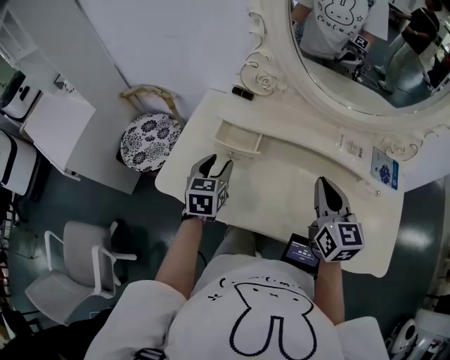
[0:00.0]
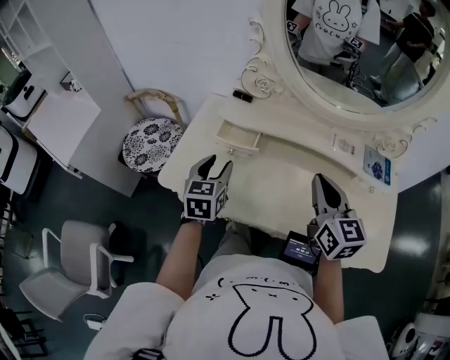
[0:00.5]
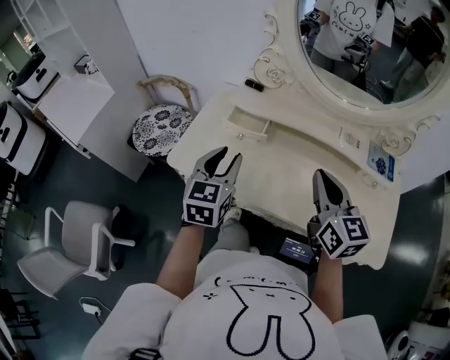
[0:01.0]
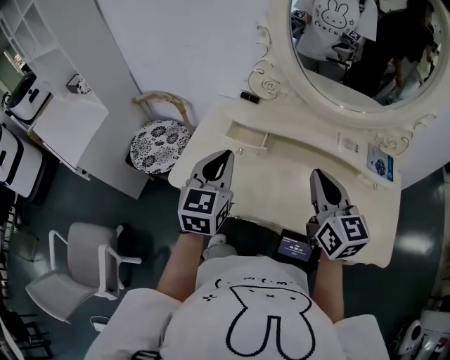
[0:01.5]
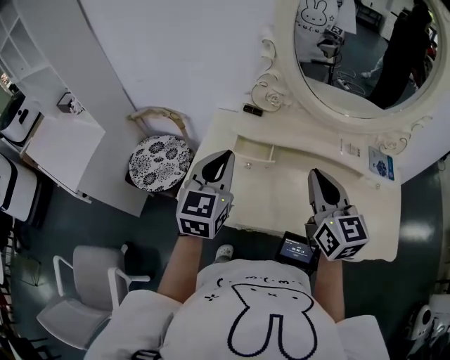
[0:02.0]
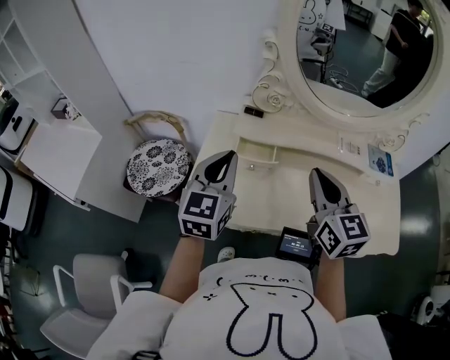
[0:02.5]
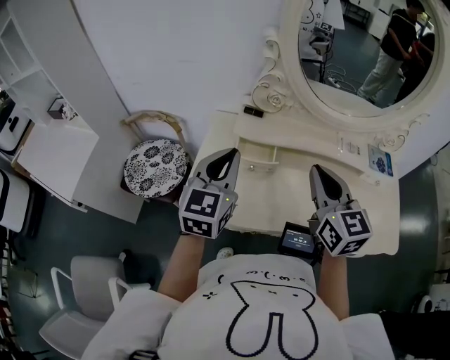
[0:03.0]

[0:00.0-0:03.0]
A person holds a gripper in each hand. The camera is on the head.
0:00.0 to 0:01.5: The right gripper heads upward and to the left, covering roughly 10 cm, while the left gripper moves upward and backward, about 15 cm, turns by some 20 degrees, and closes.
0:01.5 to 0:03.0: The right gripper is displaced to the left by about 5 cm. The left gripper ends up some 5 cm from where it was.

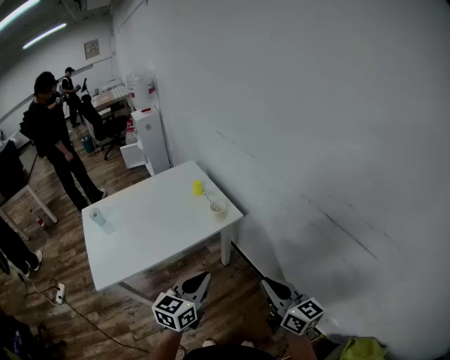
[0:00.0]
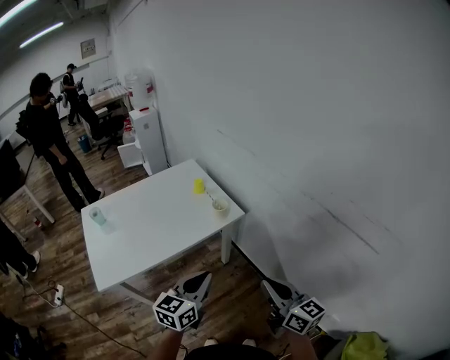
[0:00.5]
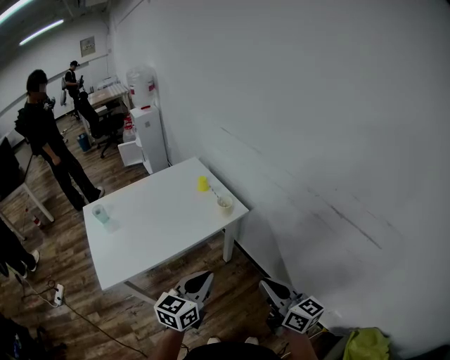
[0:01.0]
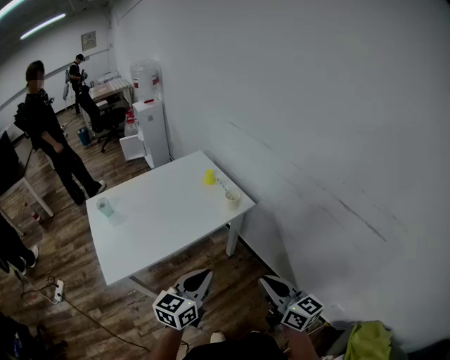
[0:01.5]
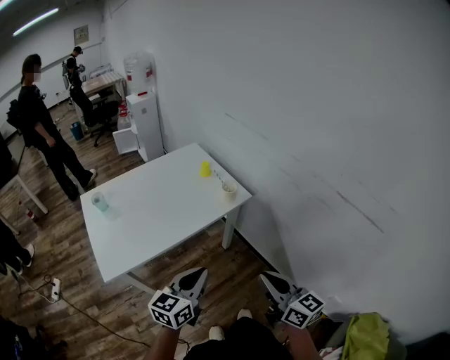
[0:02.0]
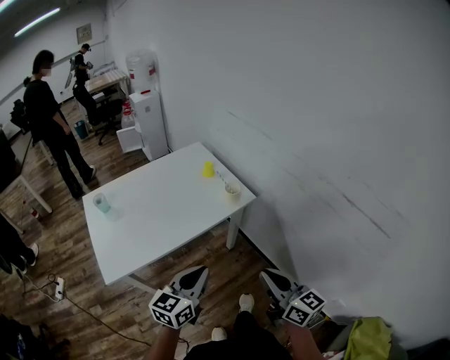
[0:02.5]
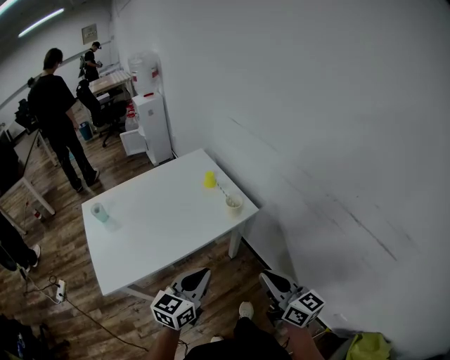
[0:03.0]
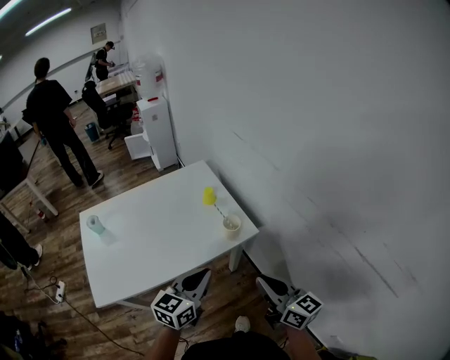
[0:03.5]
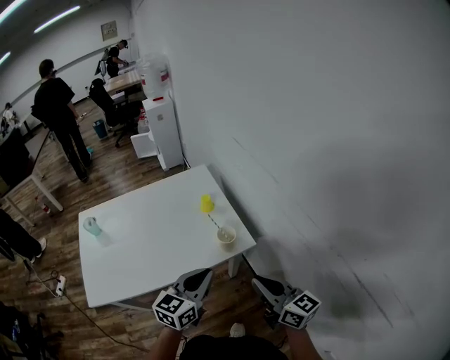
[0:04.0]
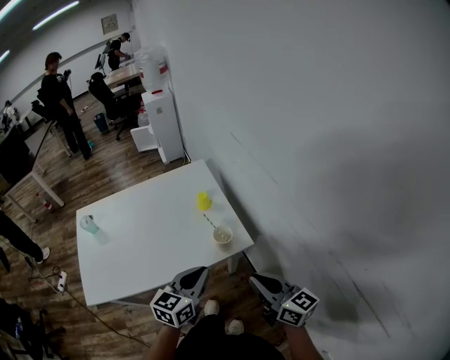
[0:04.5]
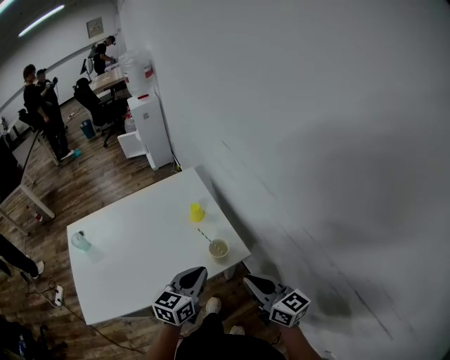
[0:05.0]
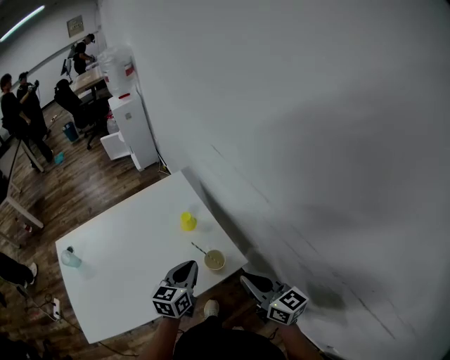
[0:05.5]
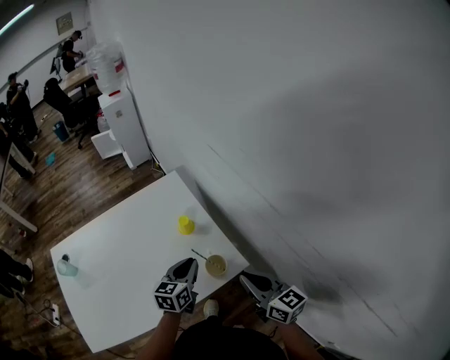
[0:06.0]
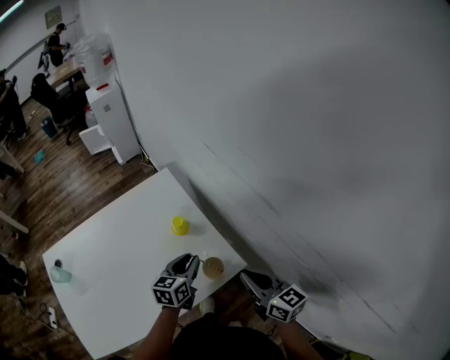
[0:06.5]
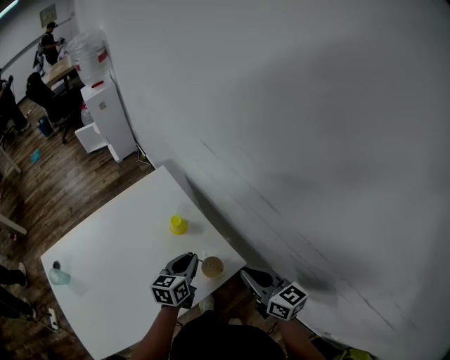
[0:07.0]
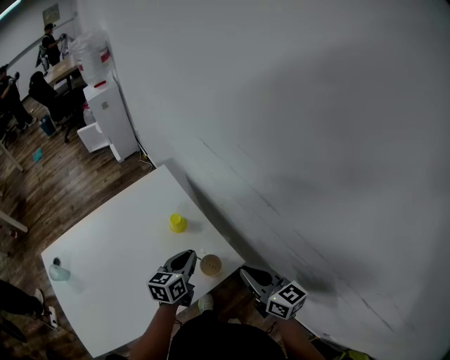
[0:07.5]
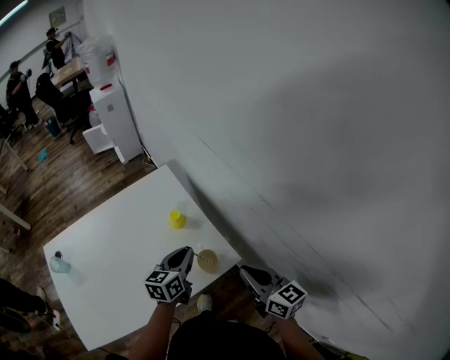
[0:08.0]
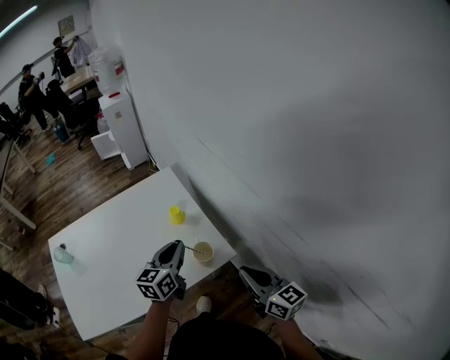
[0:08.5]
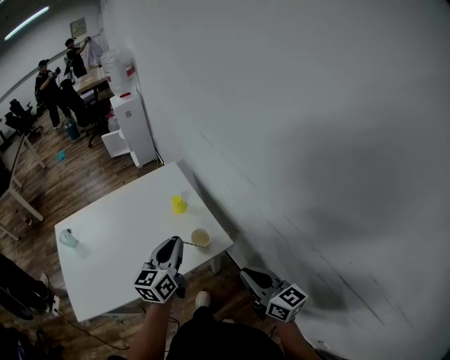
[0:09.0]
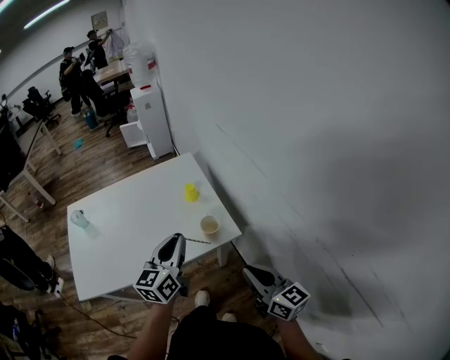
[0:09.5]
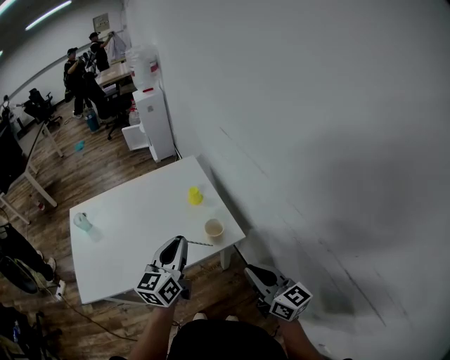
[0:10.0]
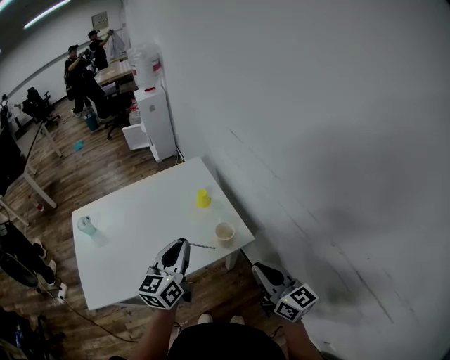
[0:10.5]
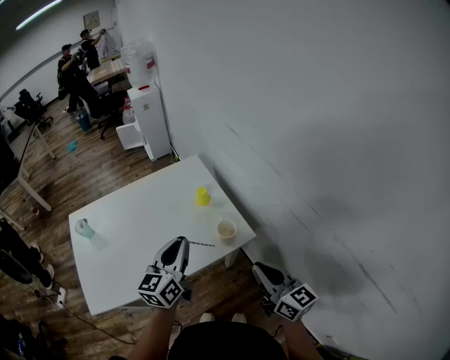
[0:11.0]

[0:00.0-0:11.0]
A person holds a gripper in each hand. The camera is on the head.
0:00.0 to 0:02.0: Both grippers move to the left and backward, some 10 cm.
0:02.0 to 0:03.5: The grippers both shift forward by some 20 cm.
0:03.5 to 0:05.5: Both grippers move forward, roughly 20 cm.
0:05.5 to 0:07.5: The left gripper shifts approximately 5 cm forward; the right gripper ends up some 5 cm from where it was.
0:07.5 to 0:09.0: The left gripper is displaced upward and backward by approximately 20 cm, and swivels approximately 20 degrees, while the right gripper moves backward, some 15 cm.
0:09.0 to 0:11.0: Both grippers move to the left, roughly 5 cm.

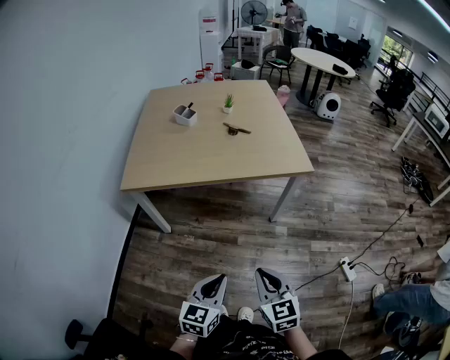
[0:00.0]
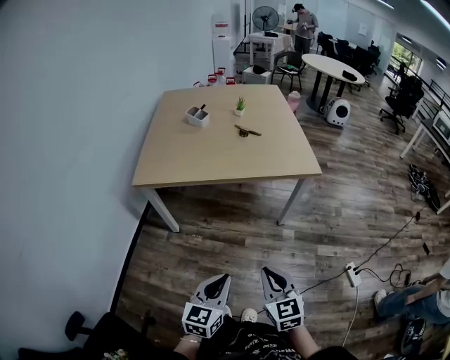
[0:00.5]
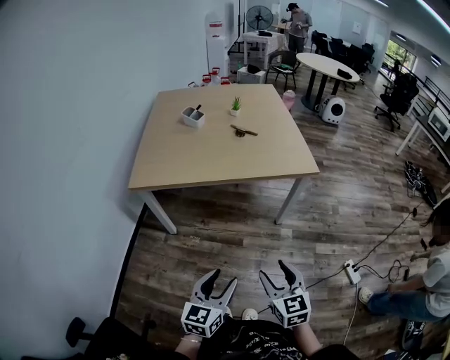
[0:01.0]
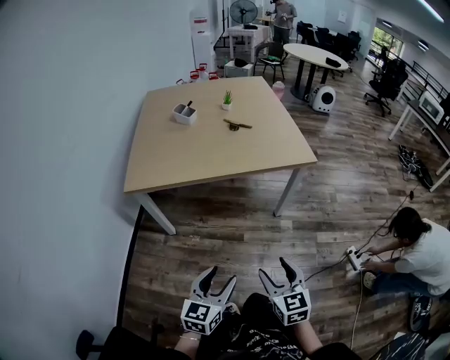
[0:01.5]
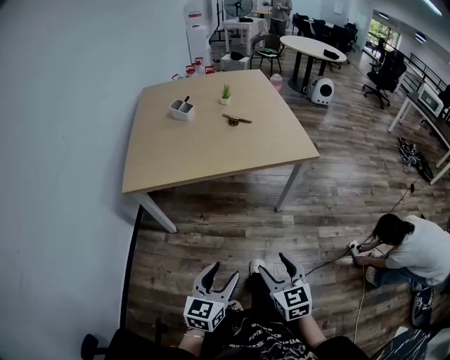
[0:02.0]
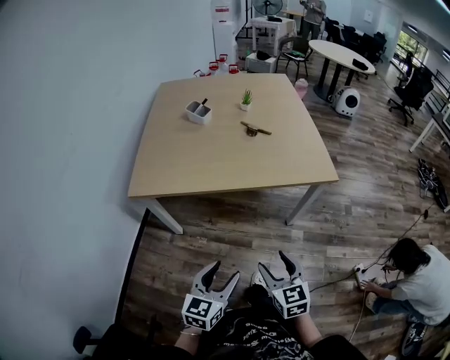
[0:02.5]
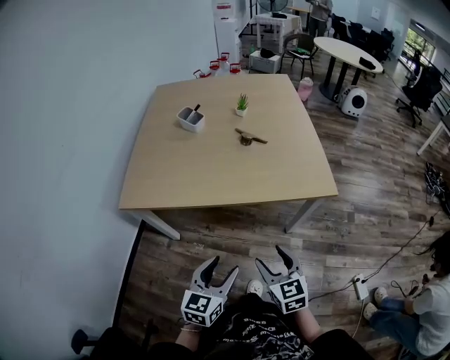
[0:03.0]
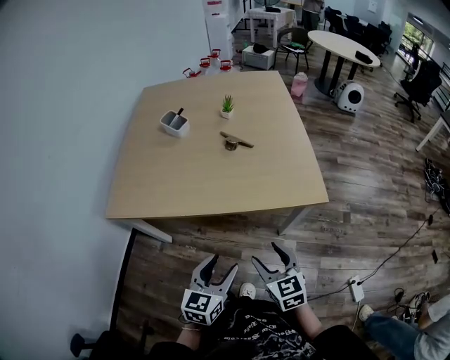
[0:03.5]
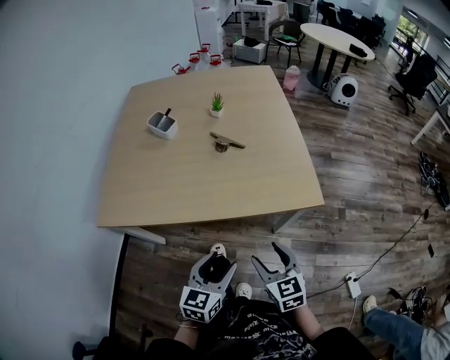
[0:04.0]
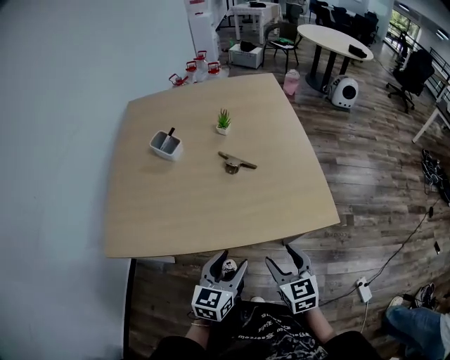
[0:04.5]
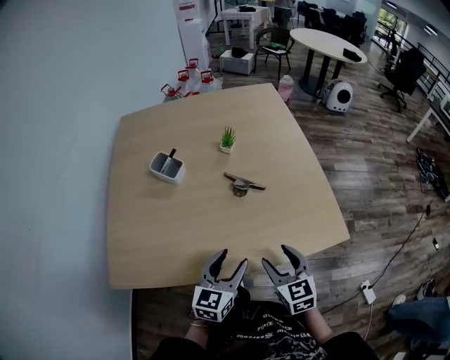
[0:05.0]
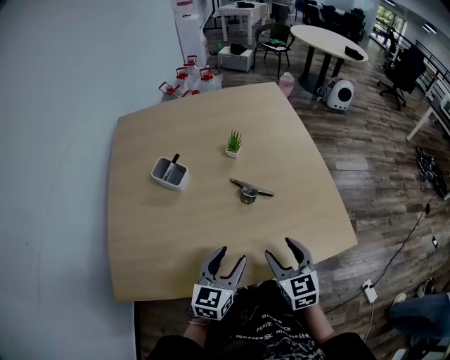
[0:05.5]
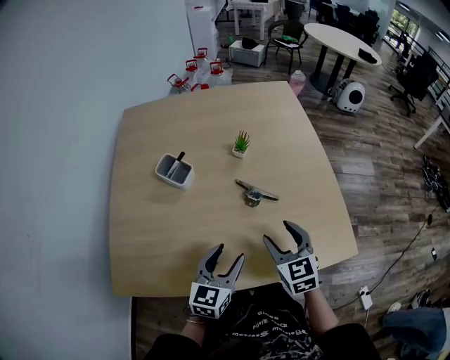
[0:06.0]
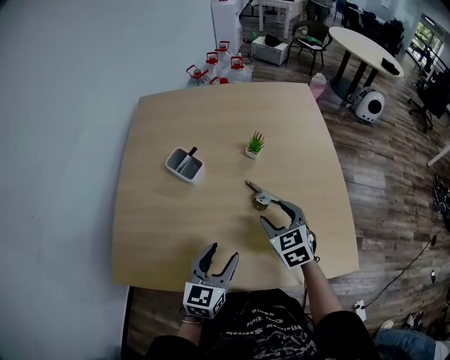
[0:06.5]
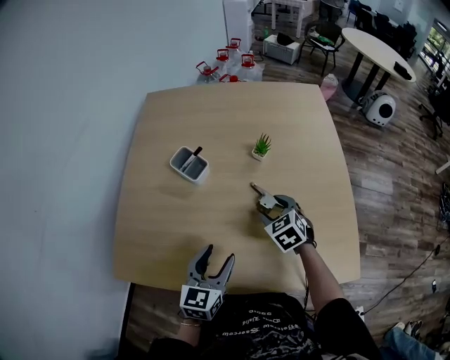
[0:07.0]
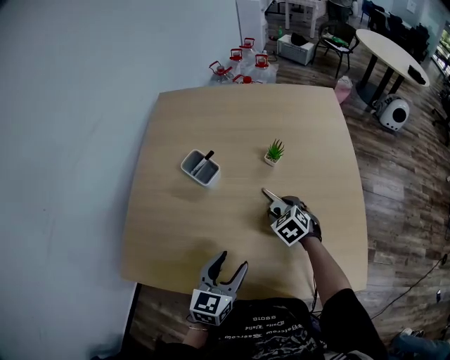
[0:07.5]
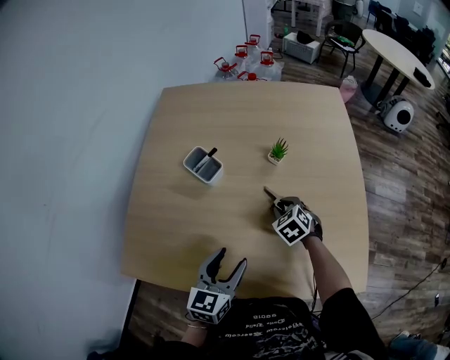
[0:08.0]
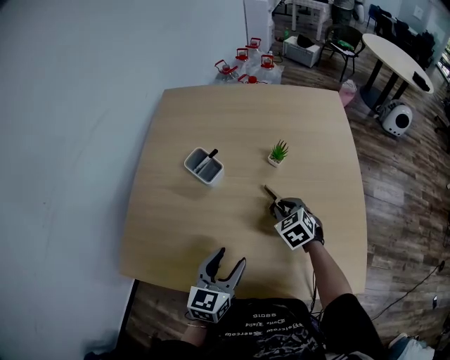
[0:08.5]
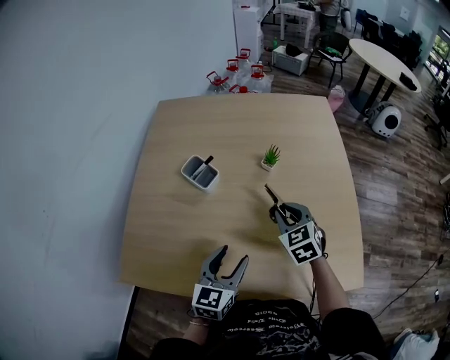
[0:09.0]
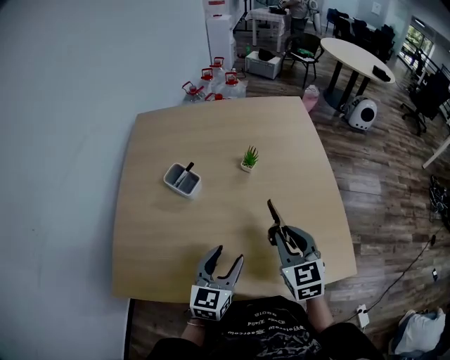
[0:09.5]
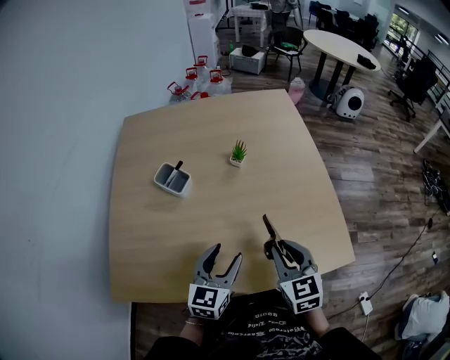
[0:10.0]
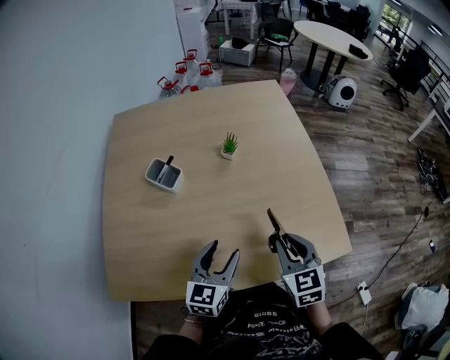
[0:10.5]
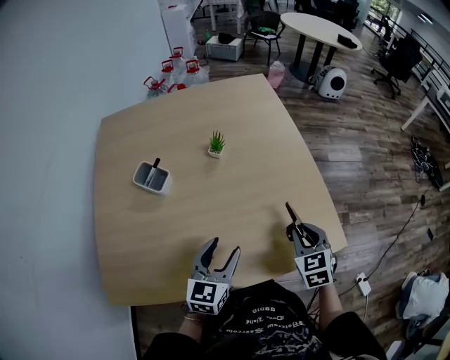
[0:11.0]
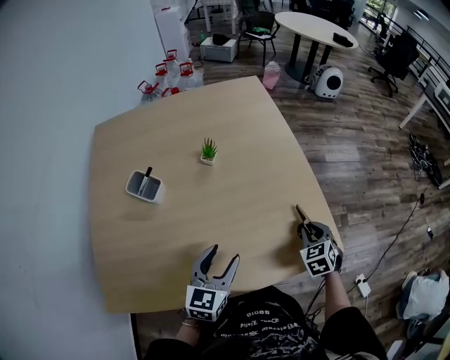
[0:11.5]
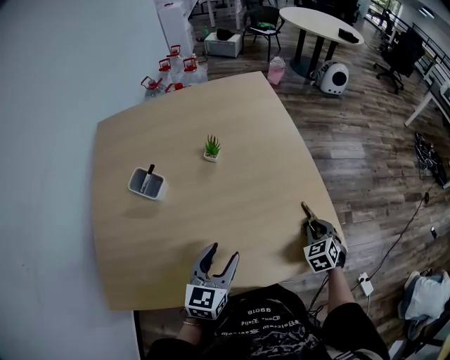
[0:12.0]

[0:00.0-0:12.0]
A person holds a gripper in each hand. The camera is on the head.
0:00.0 to 0:02.0: The right gripper opens, while the left gripper goes approximately 5 cm to the left, and opens.
0:02.0 to 0:04.0: The right gripper moves forward, approximately 30 cm; the left gripper moves forward and to the right, roughly 30 cm.
0:04.0 to 0:06.0: Both grippers travel together forward and to the left, approximately 35 cm.
0:06.0 to 0:08.0: The right gripper shifts approximately 20 cm forward and downward, changes its angle by some 40 degrees, and closes up.
0:08.0 to 0:10.0: The right gripper shifts about 25 cm backward and upward, and turns by some 40 degrees.
0:10.0 to 0:12.0: The left gripper ends up approximately 5 cm from where it was. The right gripper heads to the right, downward and forward, covering roughly 25 cm, and changes its angle by some 40 degrees.

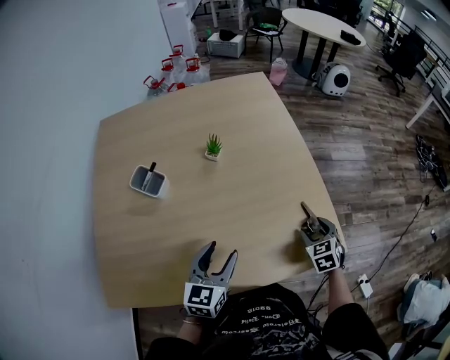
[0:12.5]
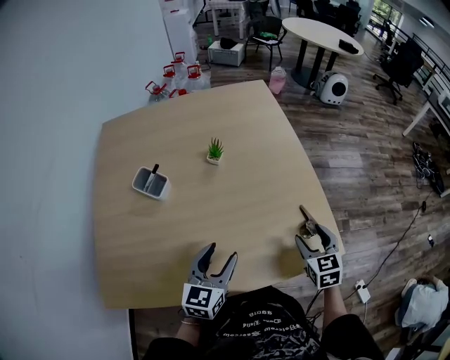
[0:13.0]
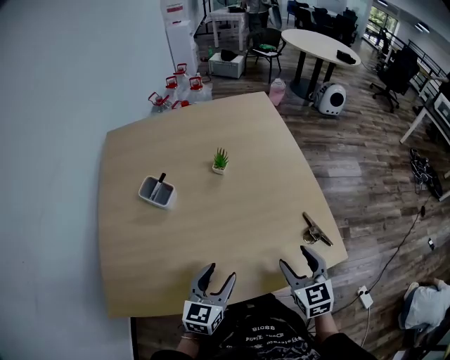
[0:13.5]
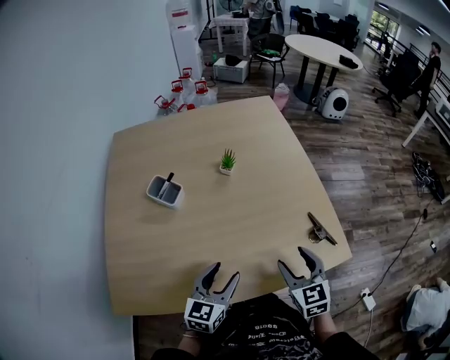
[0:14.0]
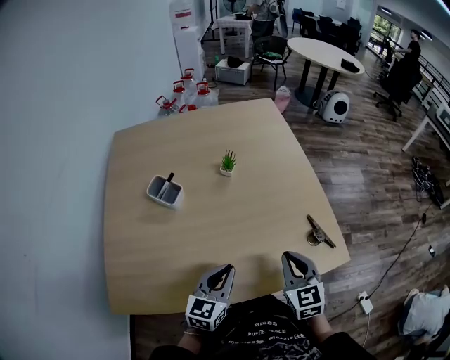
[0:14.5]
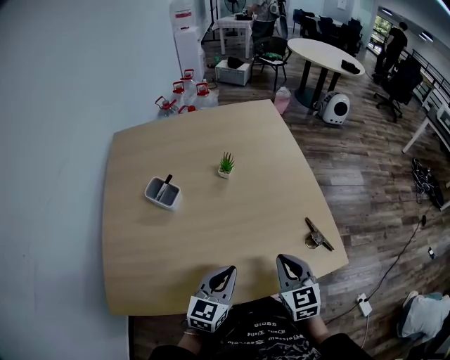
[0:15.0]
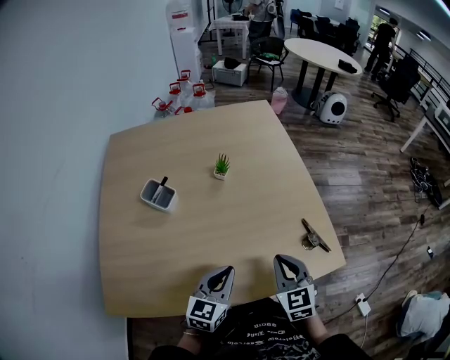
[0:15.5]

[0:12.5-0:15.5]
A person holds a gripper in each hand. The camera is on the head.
0:12.5 to 0:14.0: The left gripper moves backward, approximately 5 cm. Meanwhile the right gripper travels to the left, upward and backward by about 20 cm, and swivels some 20 degrees.
0:14.0 to 0:15.5: The right gripper closes, while the left gripper closes its fingers.
